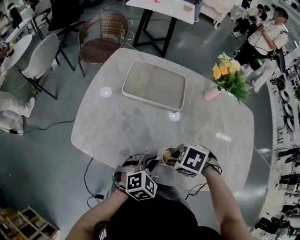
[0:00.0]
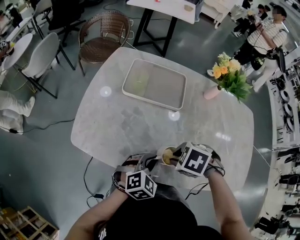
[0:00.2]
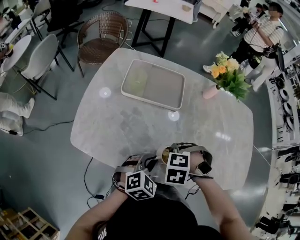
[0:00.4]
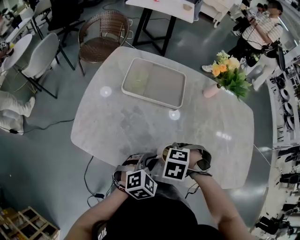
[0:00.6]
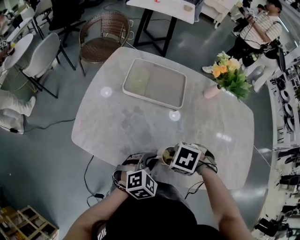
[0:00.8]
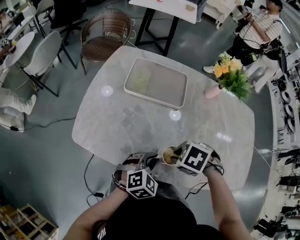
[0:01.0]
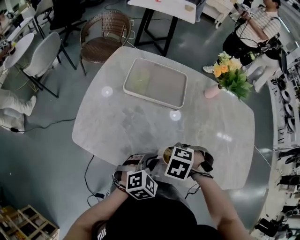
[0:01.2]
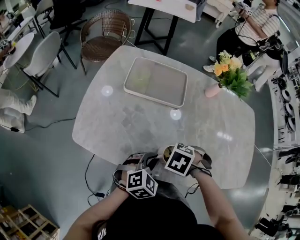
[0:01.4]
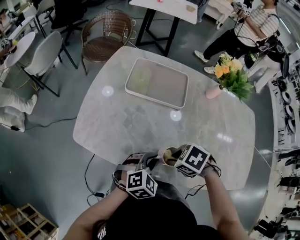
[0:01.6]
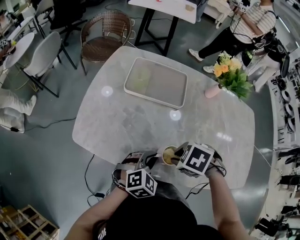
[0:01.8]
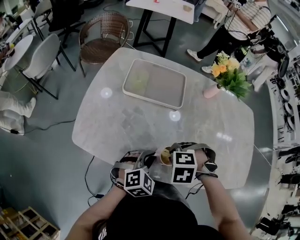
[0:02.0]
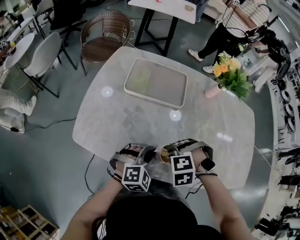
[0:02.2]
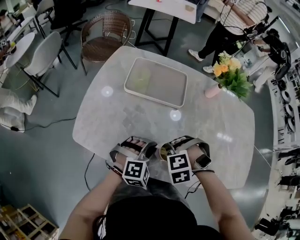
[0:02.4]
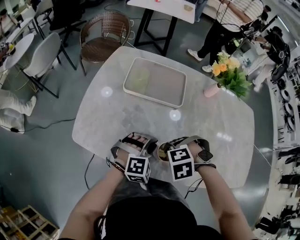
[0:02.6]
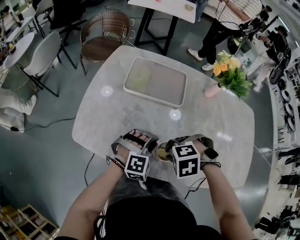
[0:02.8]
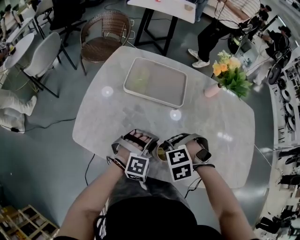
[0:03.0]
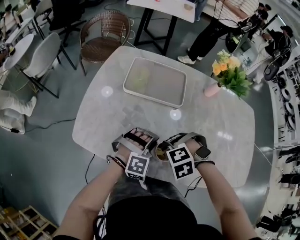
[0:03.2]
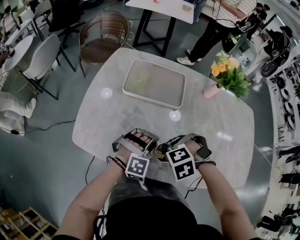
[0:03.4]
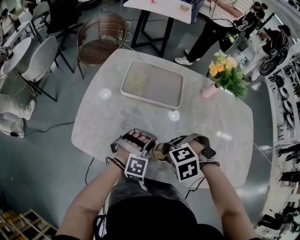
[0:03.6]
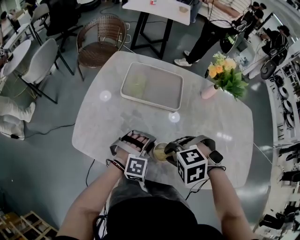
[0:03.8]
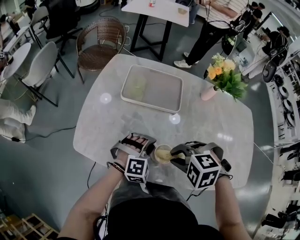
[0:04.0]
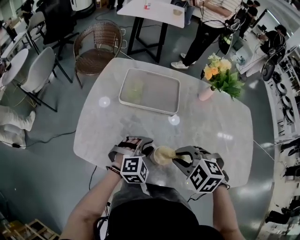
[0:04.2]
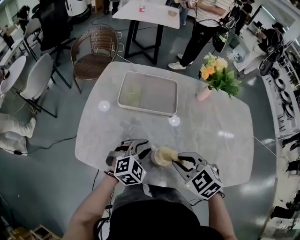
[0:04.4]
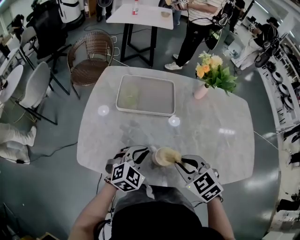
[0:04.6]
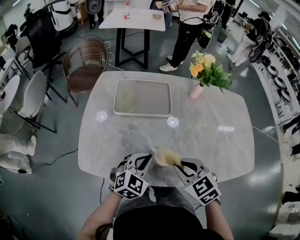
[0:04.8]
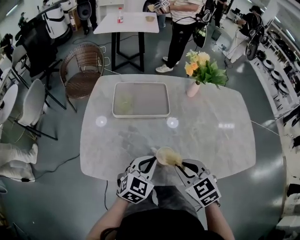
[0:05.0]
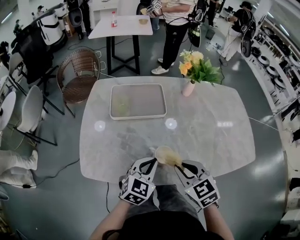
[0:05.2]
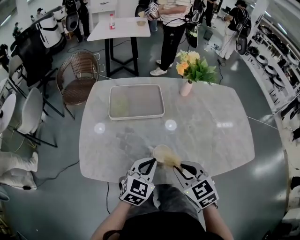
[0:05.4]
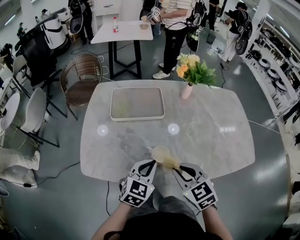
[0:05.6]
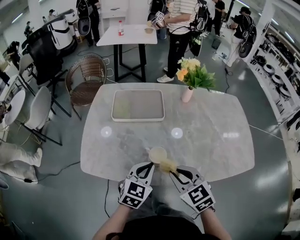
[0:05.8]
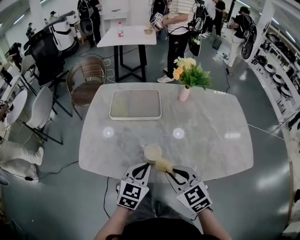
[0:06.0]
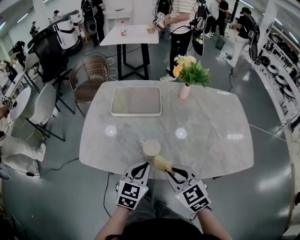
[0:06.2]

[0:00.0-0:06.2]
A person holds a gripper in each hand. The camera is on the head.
0:01.6 to 0:03.2: The right gripper twists roughly 60 degrees counterclockwise, seen from behind. Meanwhile the left gripper changes place by about 5 cm, and rolls clockwise, seen from behind, by approximately 40 degrees.
0:03.2 to 0:04.6: The right gripper moves upward, about 10 cm, and rolls clockwise, seen from behind, by about 60 degrees. The left gripper ends up approximately 5 cm from where it was, and swivels roughly 40 degrees.
0:04.6 to 0:06.2: The left gripper goes about 15 cm backward, to the right and upward, and changes its angle by approximately 30 degrees; the right gripper goes approximately 10 cm backward.

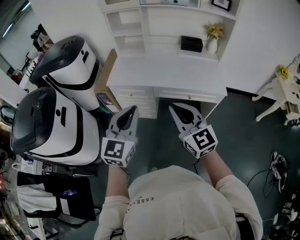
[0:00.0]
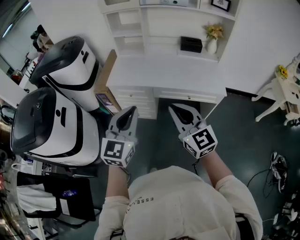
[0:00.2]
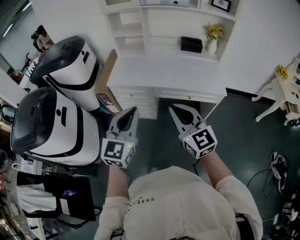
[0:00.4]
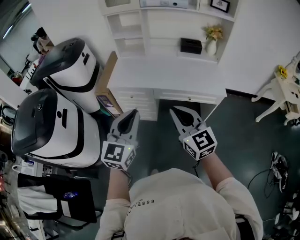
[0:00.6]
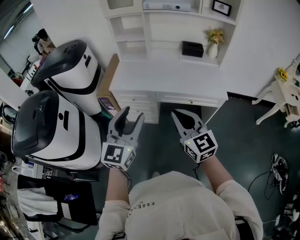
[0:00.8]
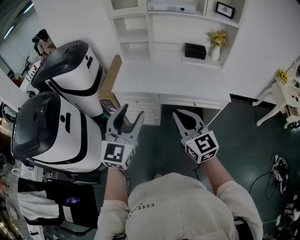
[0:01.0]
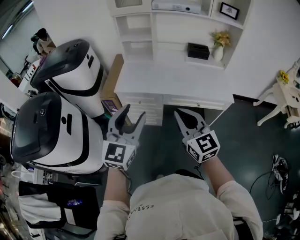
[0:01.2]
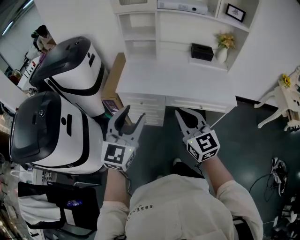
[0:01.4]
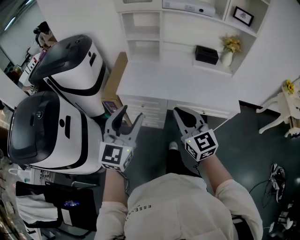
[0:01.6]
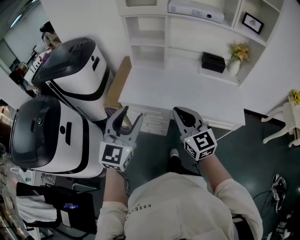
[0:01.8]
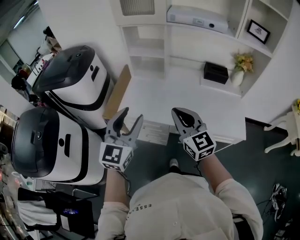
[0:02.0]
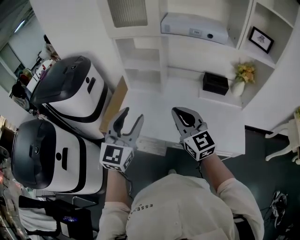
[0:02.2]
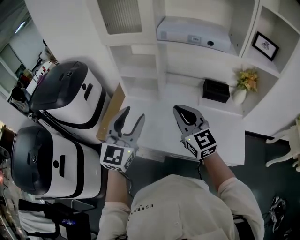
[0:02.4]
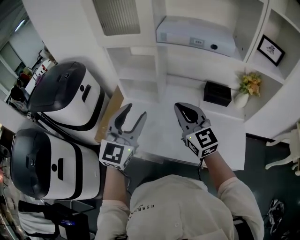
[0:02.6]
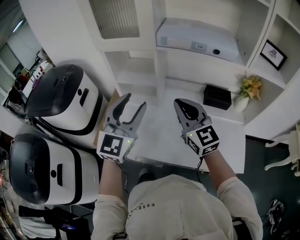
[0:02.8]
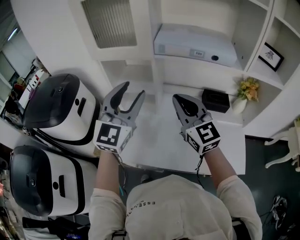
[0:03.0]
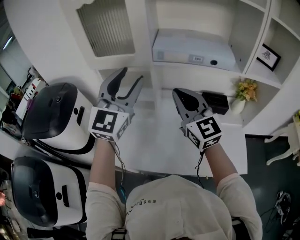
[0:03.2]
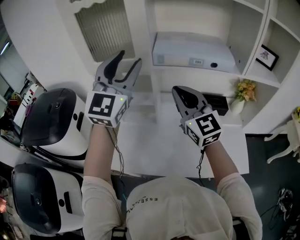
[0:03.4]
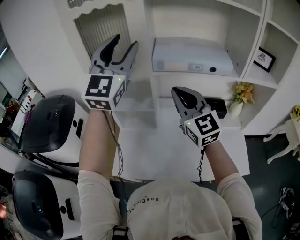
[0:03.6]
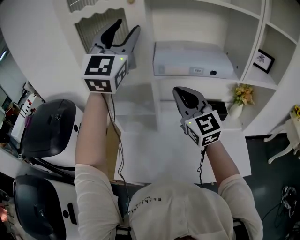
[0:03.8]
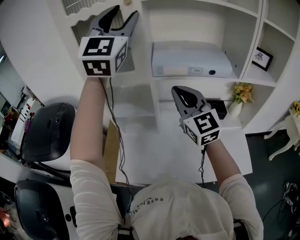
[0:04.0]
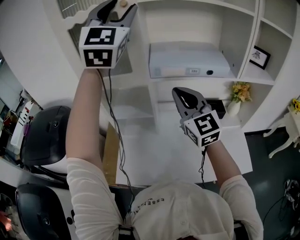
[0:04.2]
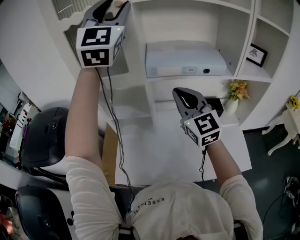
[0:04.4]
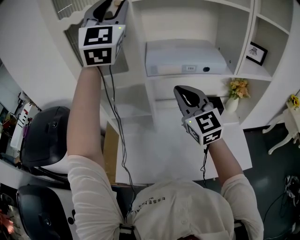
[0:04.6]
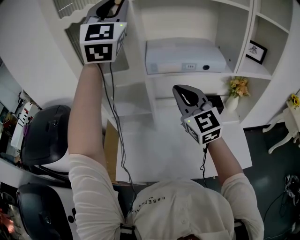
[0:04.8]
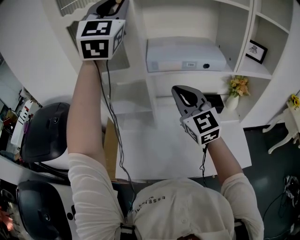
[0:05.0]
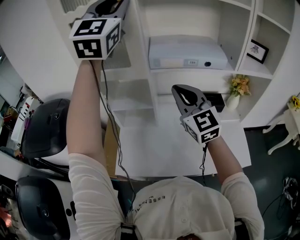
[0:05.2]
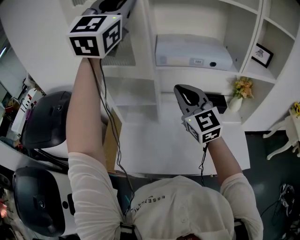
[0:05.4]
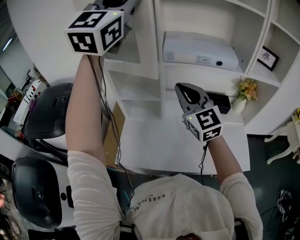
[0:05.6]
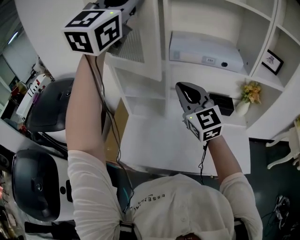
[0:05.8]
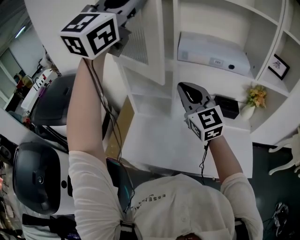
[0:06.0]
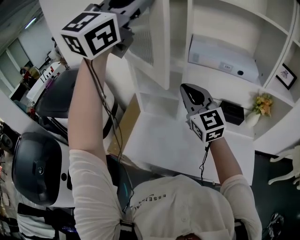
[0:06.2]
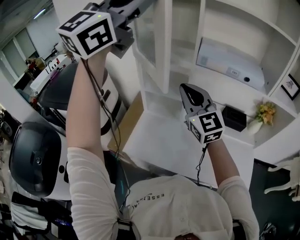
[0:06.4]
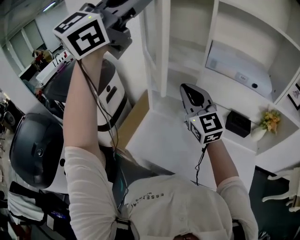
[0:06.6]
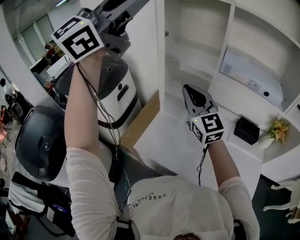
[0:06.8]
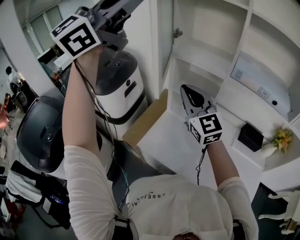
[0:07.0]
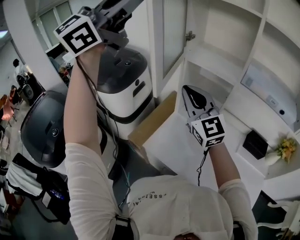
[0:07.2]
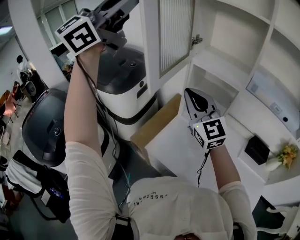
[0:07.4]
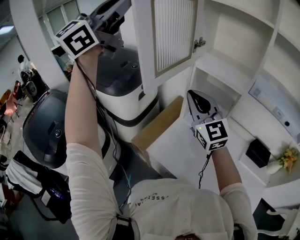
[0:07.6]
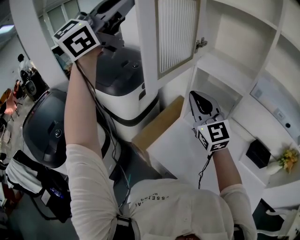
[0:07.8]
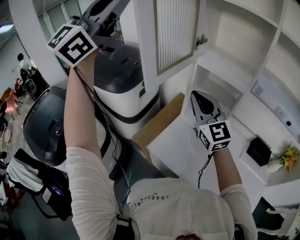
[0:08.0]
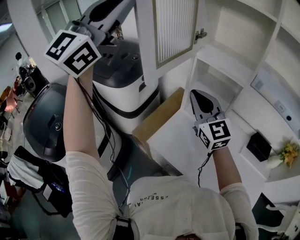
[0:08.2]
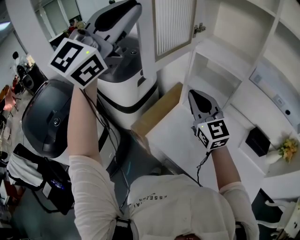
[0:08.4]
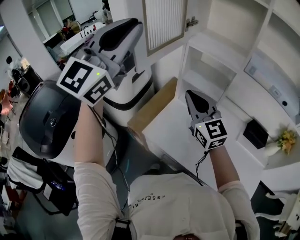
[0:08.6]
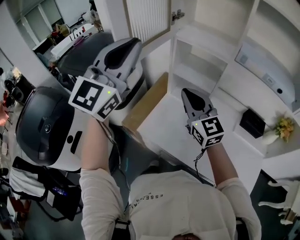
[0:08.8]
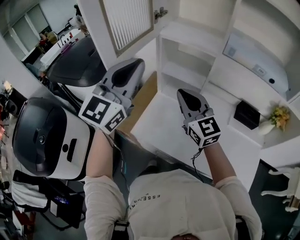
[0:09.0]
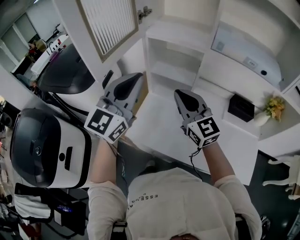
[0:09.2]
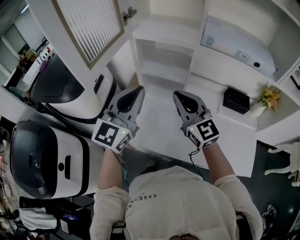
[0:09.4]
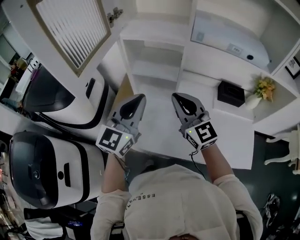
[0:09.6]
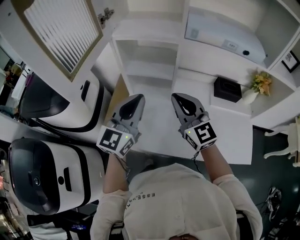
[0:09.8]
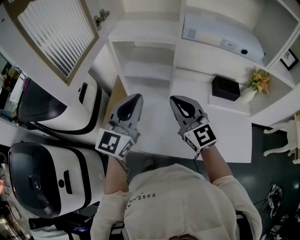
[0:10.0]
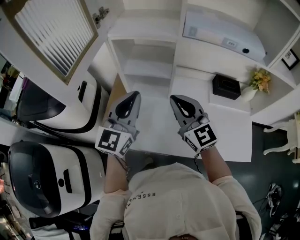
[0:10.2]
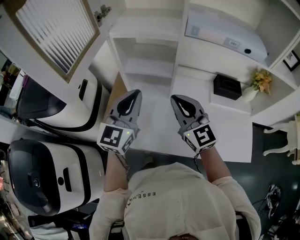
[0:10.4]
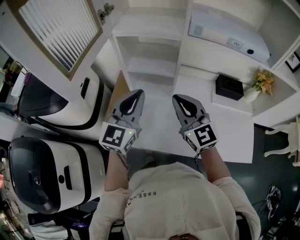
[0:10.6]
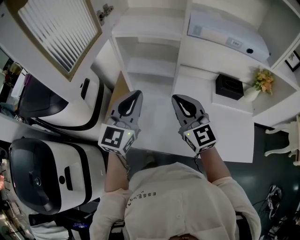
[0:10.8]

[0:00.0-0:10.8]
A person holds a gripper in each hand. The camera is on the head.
0:00.0 to 0:01.6: The left gripper shifts about 15 cm to the left and forward, and opens up. The right gripper shifts about 15 cm forward and to the left.
0:01.6 to 0:03.0: The two grippers travel together, forward, some 40 cm.
0:03.0 to 0:04.6: The right gripper shifts roughly 10 cm forward and upward, while the left gripper travels upward and forward by some 35 cm, and turns by approximately 30 degrees.
0:04.6 to 0:06.2: The right gripper travels to the left and backward by approximately 10 cm, while the left gripper moves backward and to the left, approximately 15 cm, and turns by some 20 degrees.
0:06.2 to 0:07.8: The two grippers go about 20 cm to the left. The right gripper swivels about 20 degrees.
0:07.8 to 0:09.2: The left gripper heads downward and to the right, covering approximately 35 cm, while the right gripper goes approximately 15 cm to the right and downward.
0:09.2 to 0:10.8: The left gripper is displaced downward and to the right by approximately 10 cm; the right gripper heads to the right, covering roughly 5 cm.

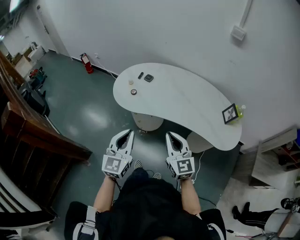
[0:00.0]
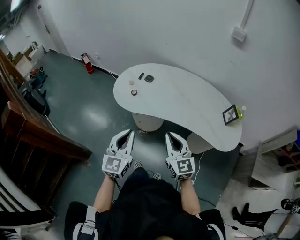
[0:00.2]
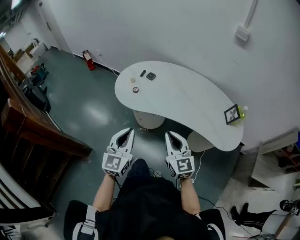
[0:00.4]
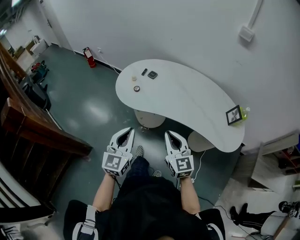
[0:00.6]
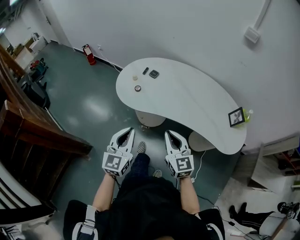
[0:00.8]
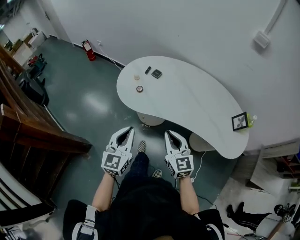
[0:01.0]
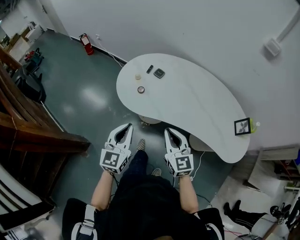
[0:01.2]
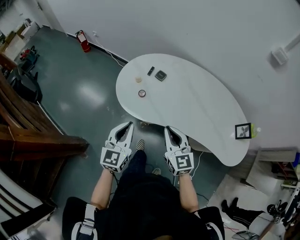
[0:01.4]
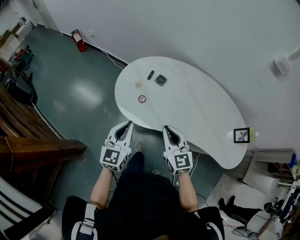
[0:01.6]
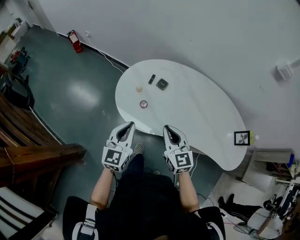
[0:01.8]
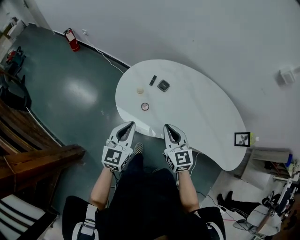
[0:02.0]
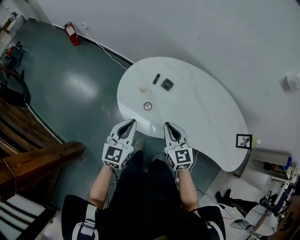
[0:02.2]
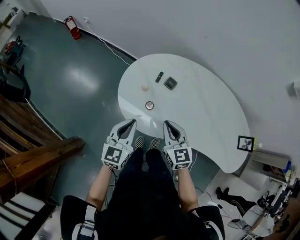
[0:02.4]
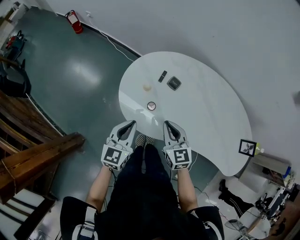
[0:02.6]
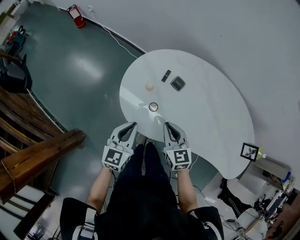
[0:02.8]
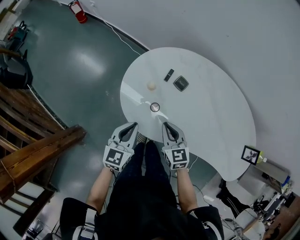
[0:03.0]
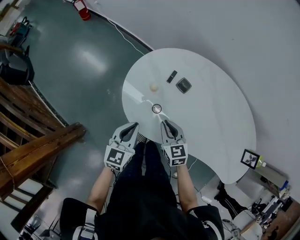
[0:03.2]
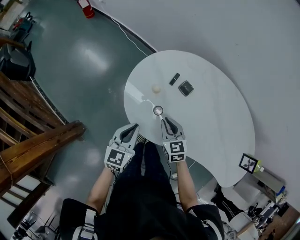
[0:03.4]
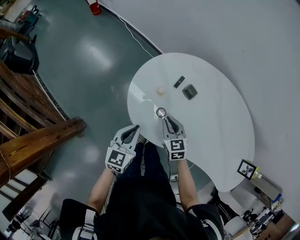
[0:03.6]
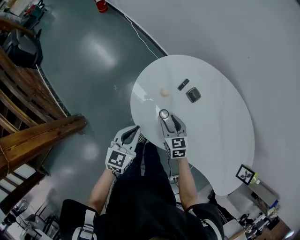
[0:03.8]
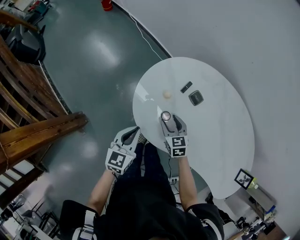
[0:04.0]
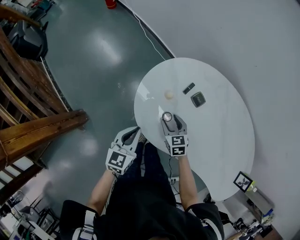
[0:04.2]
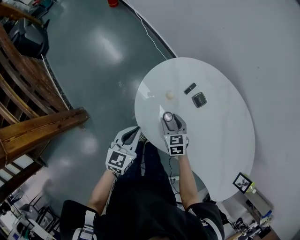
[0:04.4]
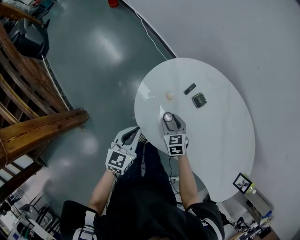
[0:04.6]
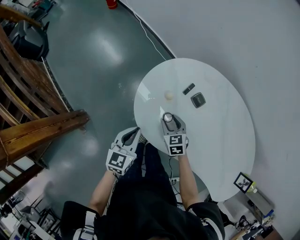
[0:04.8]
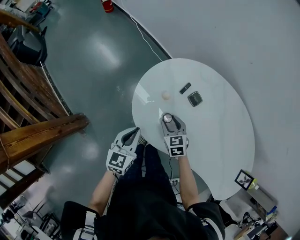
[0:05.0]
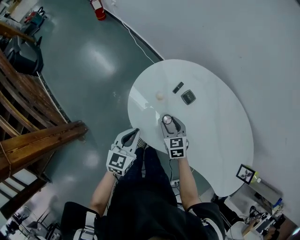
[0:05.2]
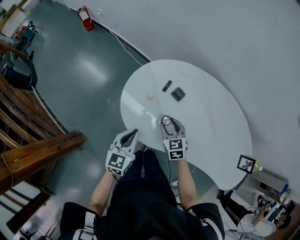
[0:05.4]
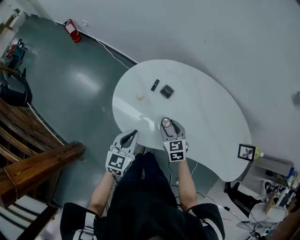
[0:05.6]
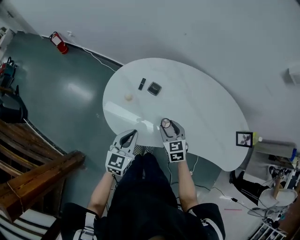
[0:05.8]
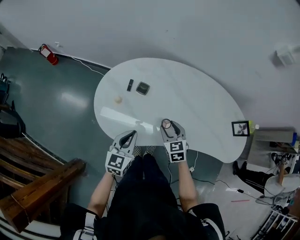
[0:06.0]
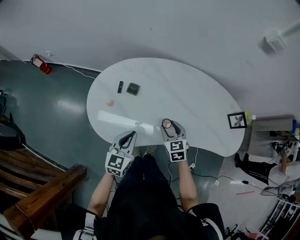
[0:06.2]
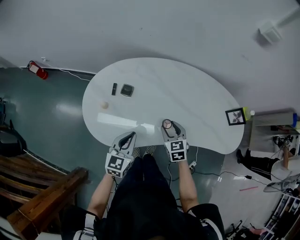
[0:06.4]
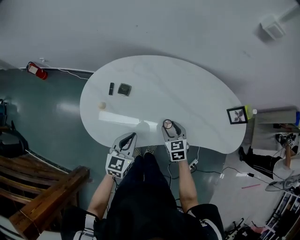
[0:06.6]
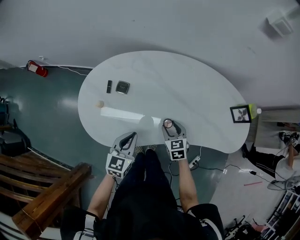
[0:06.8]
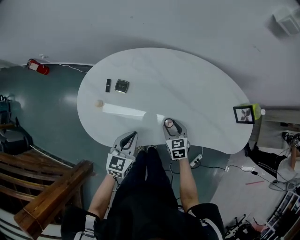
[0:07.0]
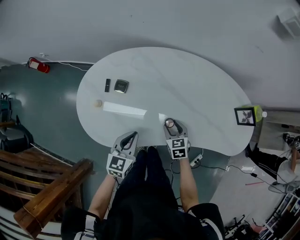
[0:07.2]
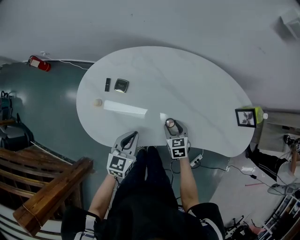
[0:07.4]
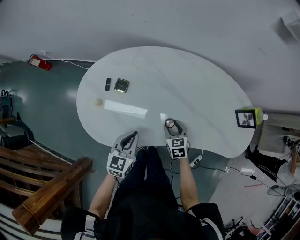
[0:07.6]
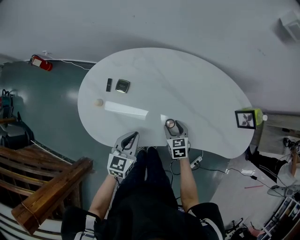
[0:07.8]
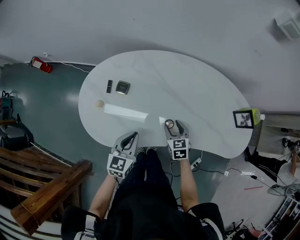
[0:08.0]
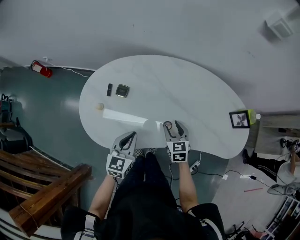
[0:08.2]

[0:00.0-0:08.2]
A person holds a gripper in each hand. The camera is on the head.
0:00.0 to 0:01.6: The grippers both shift forward and to the left by approximately 30 cm.
0:01.6 to 0:03.2: The grippers both shift downward, forward and to the left by some 25 cm. The right gripper changes its angle by some 20 degrees.
0:03.2 to 0:05.0: The right gripper travels downward and forward by about 10 cm, and opens its fingers.
0:05.0 to 0:06.6: The right gripper moves roughly 30 cm, and turns by approximately 40 degrees, while the left gripper changes place by roughly 25 cm, and changes its angle by some 40 degrees.
0:06.6 to 0:08.2: The right gripper reaches roughly 10 cm downward, then returns.
